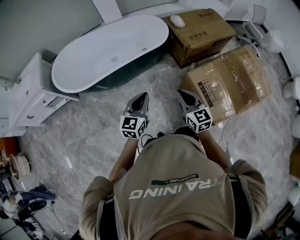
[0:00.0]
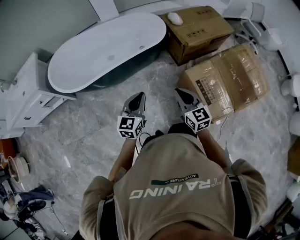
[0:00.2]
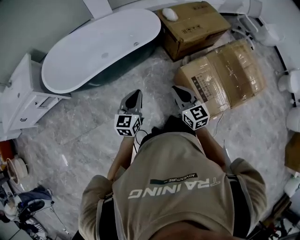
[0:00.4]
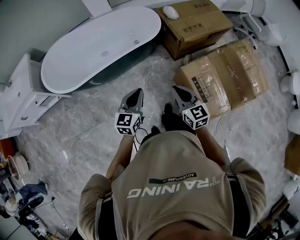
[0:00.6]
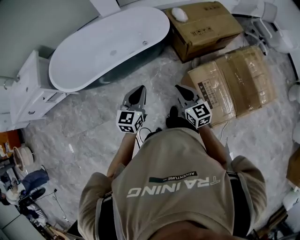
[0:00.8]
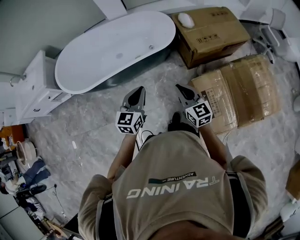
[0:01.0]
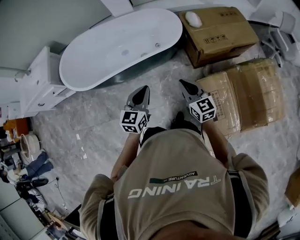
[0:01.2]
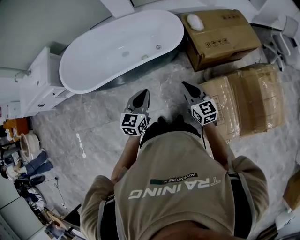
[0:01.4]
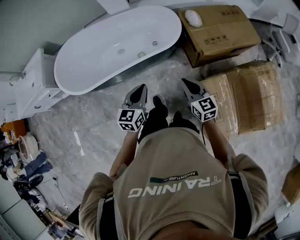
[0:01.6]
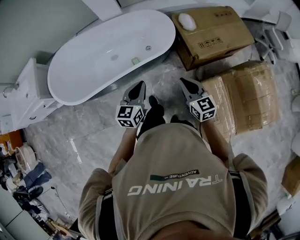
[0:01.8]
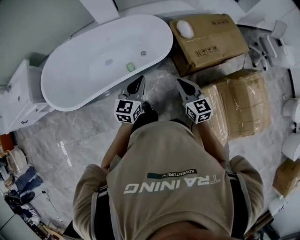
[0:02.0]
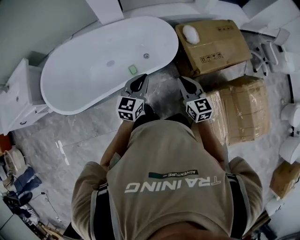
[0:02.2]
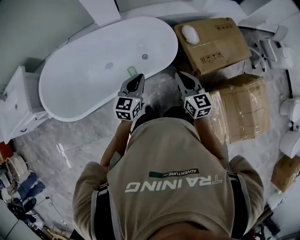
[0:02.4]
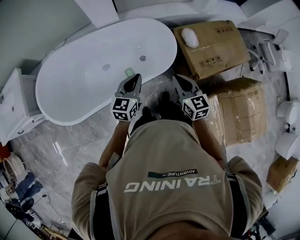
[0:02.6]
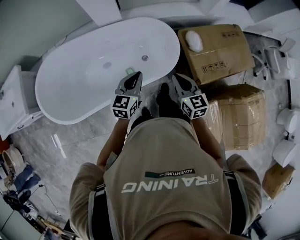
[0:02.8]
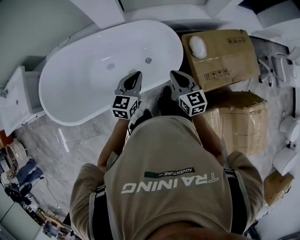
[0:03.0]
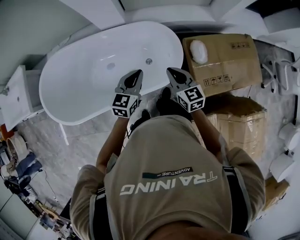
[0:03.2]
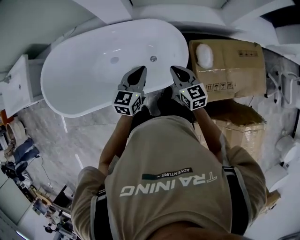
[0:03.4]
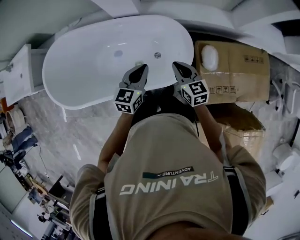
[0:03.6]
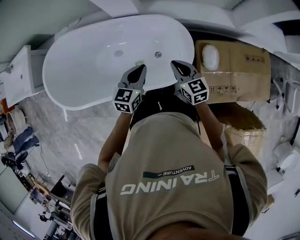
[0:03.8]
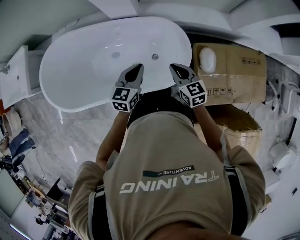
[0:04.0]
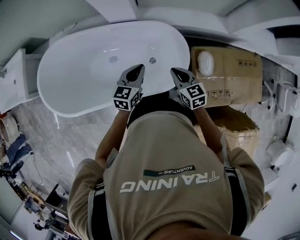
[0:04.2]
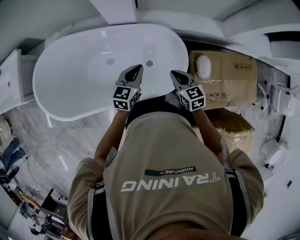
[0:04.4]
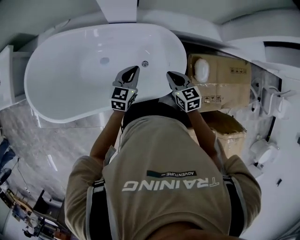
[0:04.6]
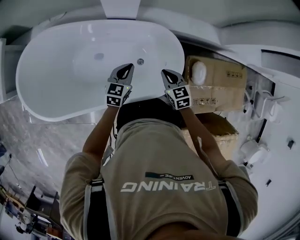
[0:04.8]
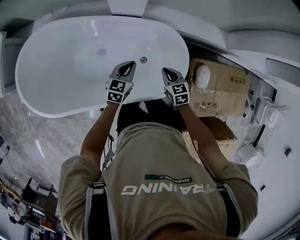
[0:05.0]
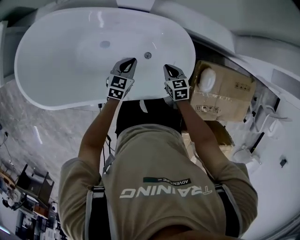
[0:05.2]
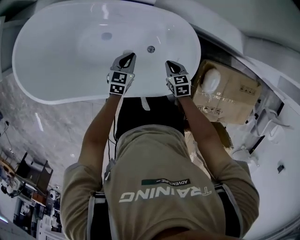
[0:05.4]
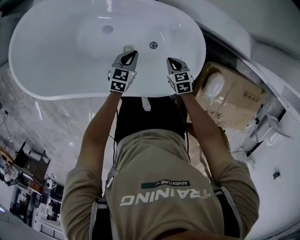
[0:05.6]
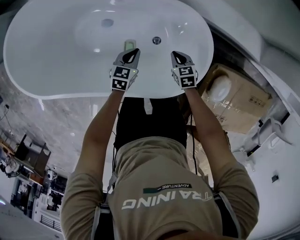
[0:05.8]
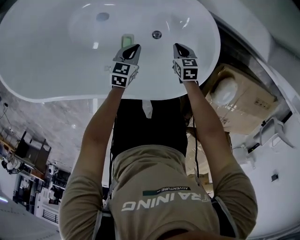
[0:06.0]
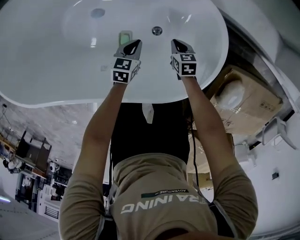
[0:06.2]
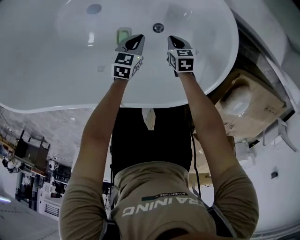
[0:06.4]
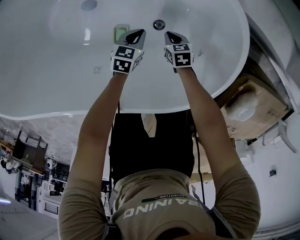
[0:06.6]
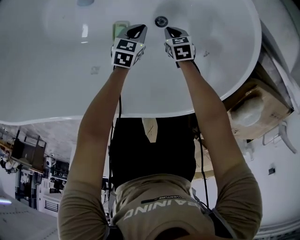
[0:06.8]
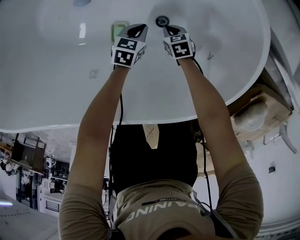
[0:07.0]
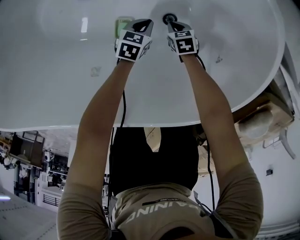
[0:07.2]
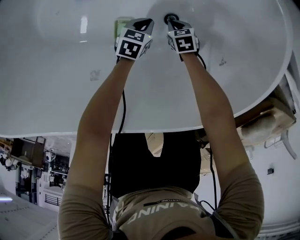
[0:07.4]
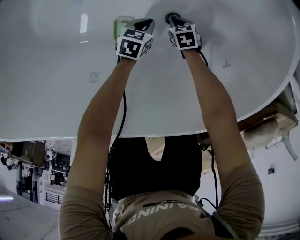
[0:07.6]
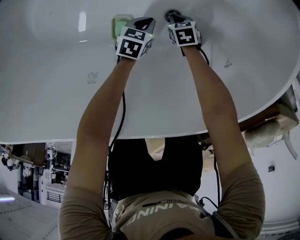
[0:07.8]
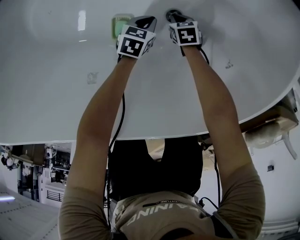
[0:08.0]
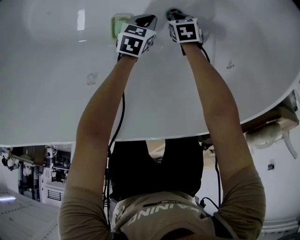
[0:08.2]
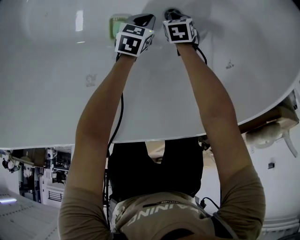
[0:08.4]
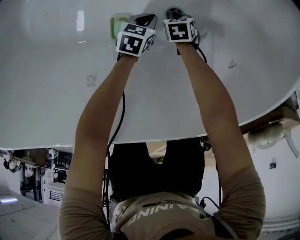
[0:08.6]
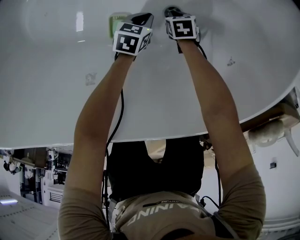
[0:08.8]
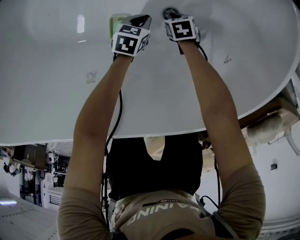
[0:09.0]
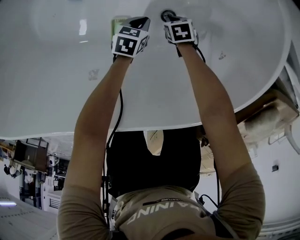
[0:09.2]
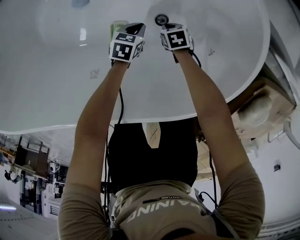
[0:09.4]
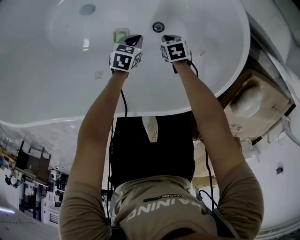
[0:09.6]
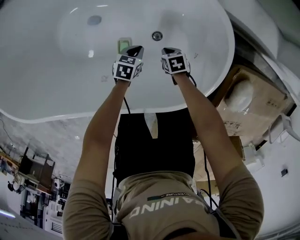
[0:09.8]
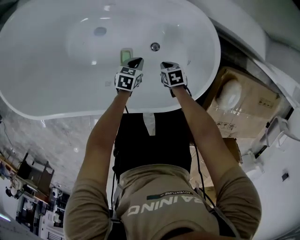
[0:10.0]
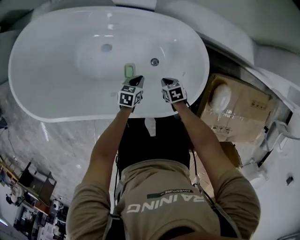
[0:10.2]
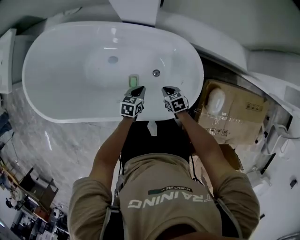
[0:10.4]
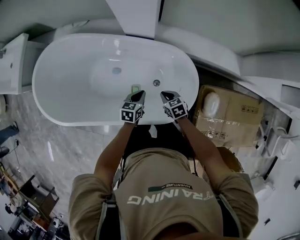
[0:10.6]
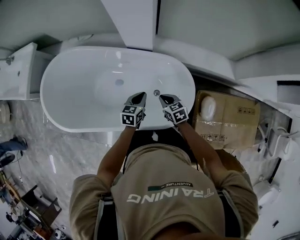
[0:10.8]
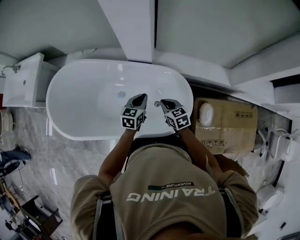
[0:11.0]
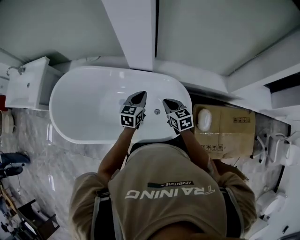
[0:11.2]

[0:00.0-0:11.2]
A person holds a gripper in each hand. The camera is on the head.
0:00.0 to 0:01.6: The grippers both shift forward by about 25 cm.
0:01.6 to 0:03.2: The pair of grippers is taken forward, some 40 cm.
0:03.2 to 0:04.8: The grippers both shift forward, downward and to the left by about 20 cm. The right gripper swivels about 20 degrees.
0:04.8 to 0:06.4: Both grippers move downward, about 40 cm. The right gripper changes its angle by roughly 30 degrees. Meanwhile the left gripper swivels approximately 30 degrees.
0:06.4 to 0:08.0: Both grippers travel together downward, roughly 25 cm.
0:08.0 to 0:09.6: Both grippers move upward, approximately 20 cm.
0:09.6 to 0:11.2: Both grippers travel together upward, roughly 60 cm. The left gripper angles its fingers upward, by about 30 degrees, while the right gripper points its fingers approximately 40 degrees further upward.

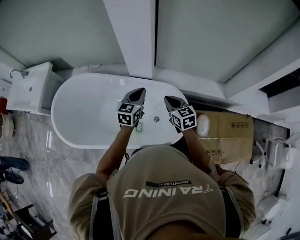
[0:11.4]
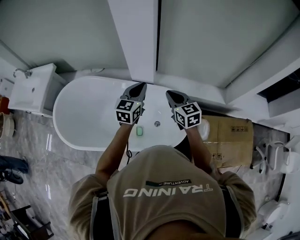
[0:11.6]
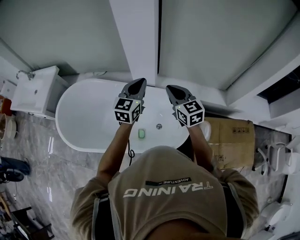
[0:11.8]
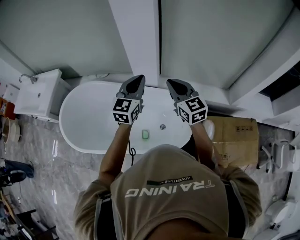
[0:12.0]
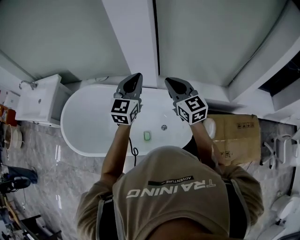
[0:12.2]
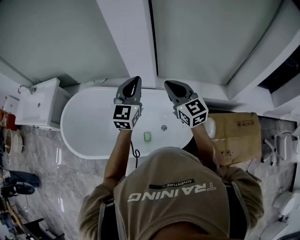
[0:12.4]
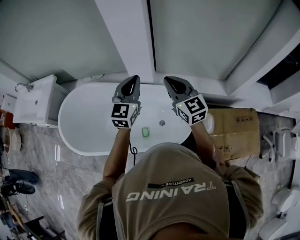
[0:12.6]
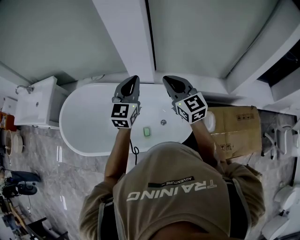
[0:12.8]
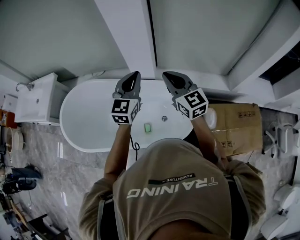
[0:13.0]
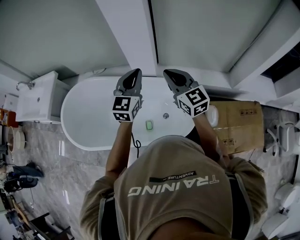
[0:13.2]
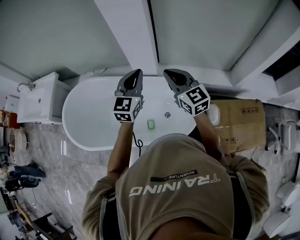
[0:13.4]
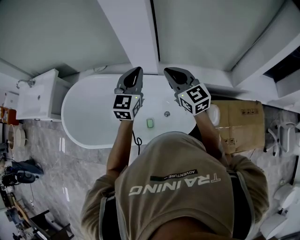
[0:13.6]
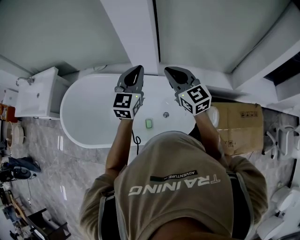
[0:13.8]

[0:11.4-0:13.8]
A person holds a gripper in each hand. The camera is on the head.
0:11.4 to 0:12.6: The grippers both shift upward by roughly 15 cm. The left gripper swivels roughly 20 degrees. Meanwhile the right gripper swivels some 30 degrees.
0:12.6 to 0:13.8: The grippers stay close to where they were, moving slightly.

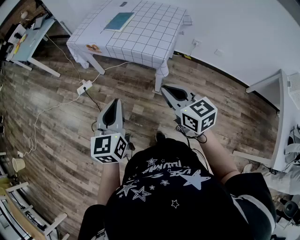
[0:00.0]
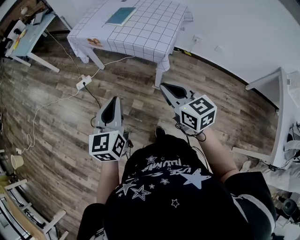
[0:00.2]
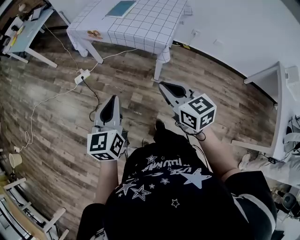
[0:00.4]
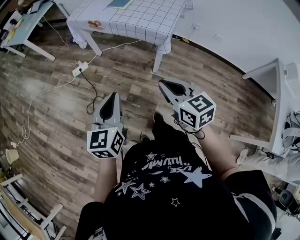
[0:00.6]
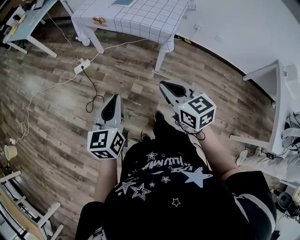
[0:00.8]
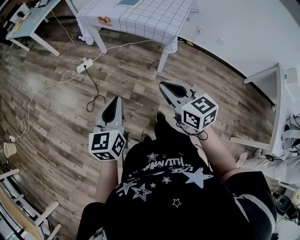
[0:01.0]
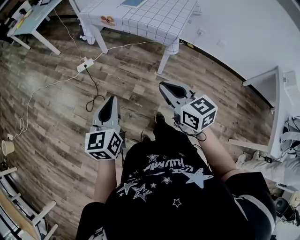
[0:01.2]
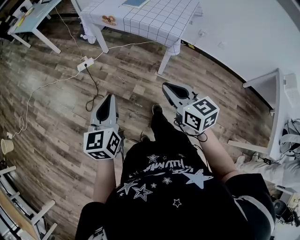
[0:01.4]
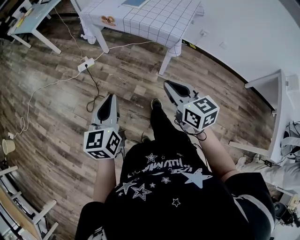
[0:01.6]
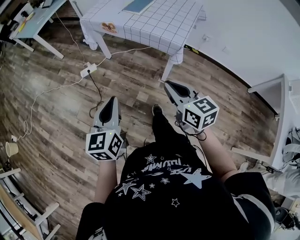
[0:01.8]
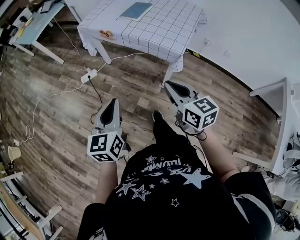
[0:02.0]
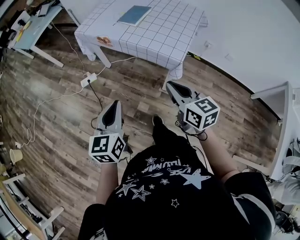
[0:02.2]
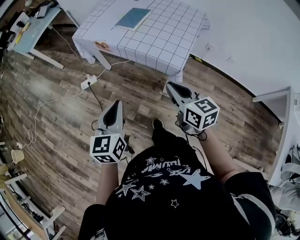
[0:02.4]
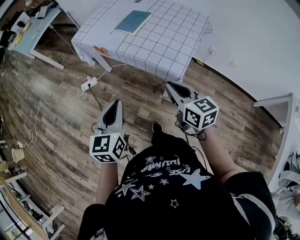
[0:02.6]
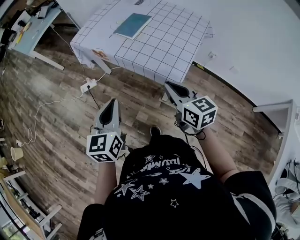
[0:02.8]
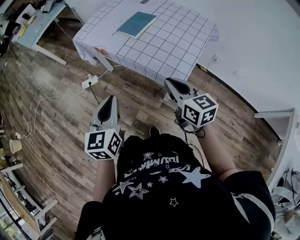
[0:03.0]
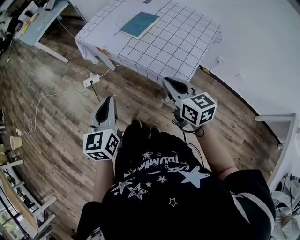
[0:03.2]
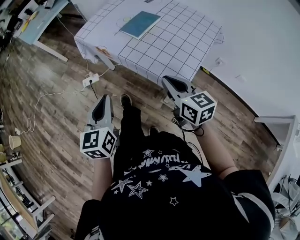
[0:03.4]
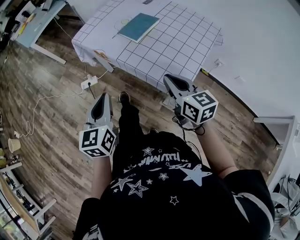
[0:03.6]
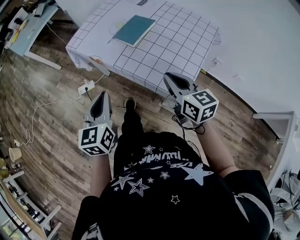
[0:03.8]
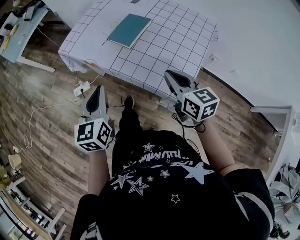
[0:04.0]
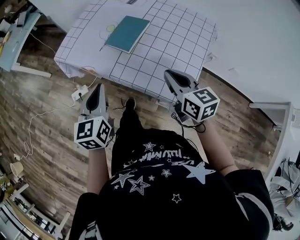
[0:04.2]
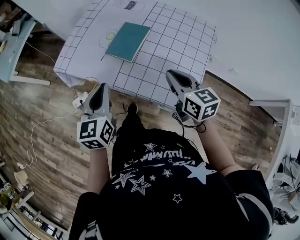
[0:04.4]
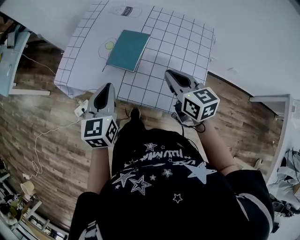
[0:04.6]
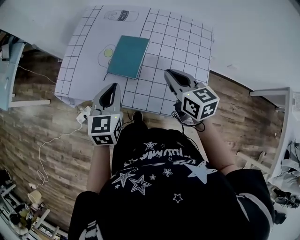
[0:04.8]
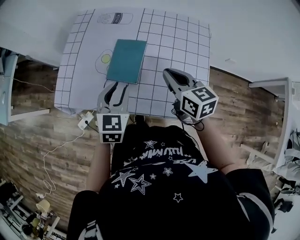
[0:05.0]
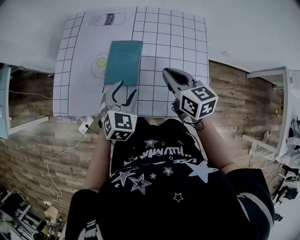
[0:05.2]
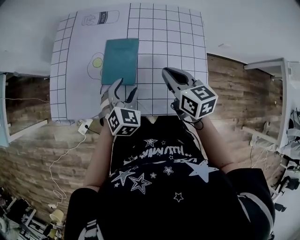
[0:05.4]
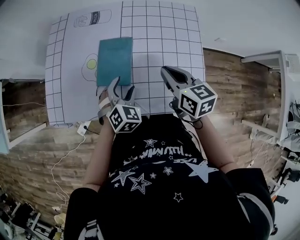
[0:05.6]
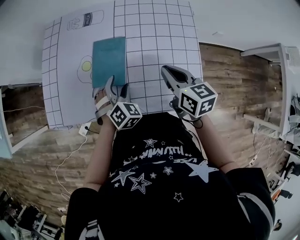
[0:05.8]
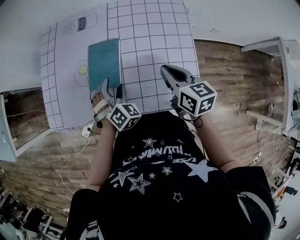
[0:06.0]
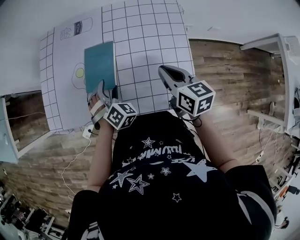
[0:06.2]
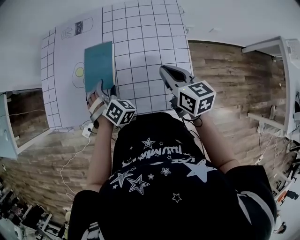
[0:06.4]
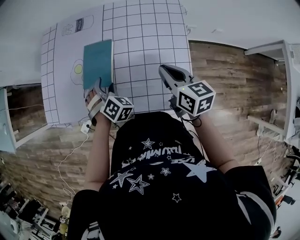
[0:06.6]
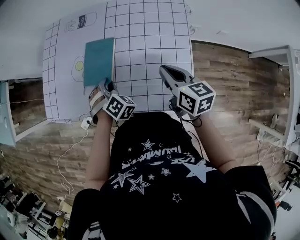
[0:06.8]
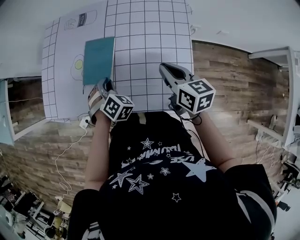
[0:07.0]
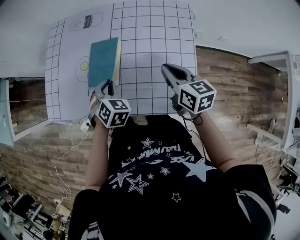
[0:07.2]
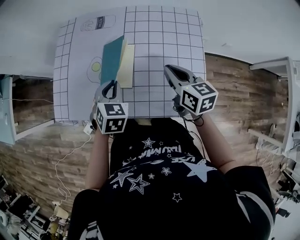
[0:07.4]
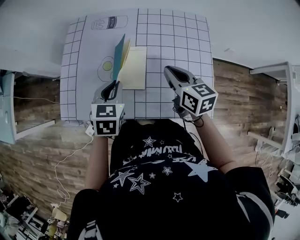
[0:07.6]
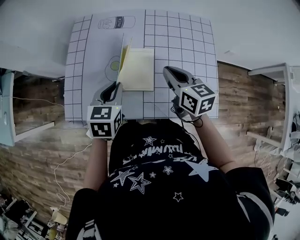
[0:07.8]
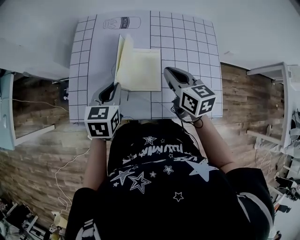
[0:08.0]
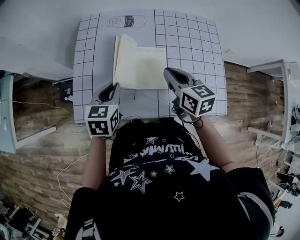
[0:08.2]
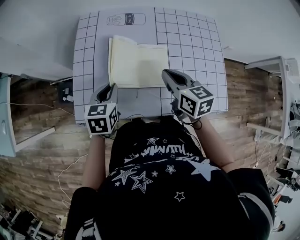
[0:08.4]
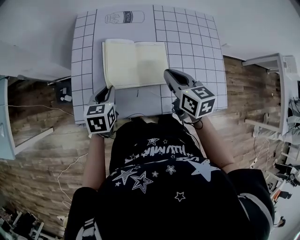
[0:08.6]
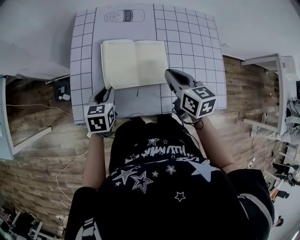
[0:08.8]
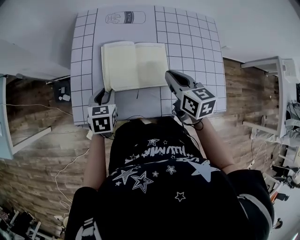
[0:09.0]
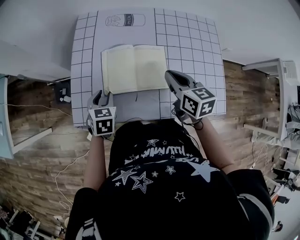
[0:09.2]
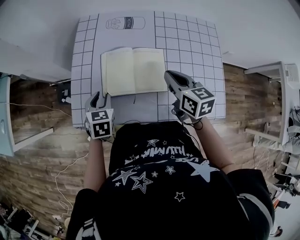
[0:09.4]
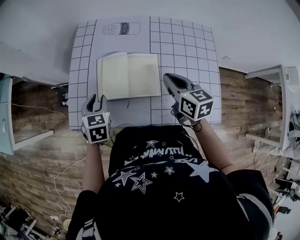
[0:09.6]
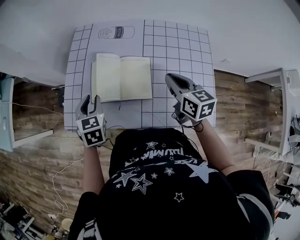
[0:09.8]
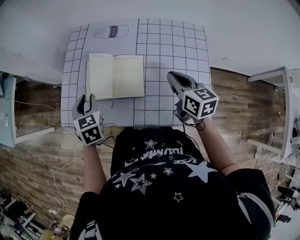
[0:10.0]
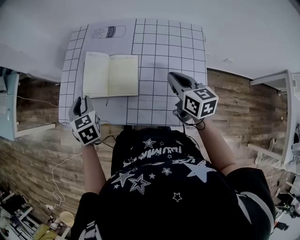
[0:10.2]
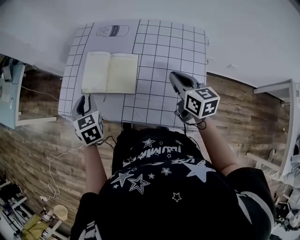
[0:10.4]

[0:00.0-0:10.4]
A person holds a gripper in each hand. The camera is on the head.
0:00.0 to 0:01.4: Both grippers move to the left and backward, approximately 15 cm.
0:01.4 to 0:03.0: Both grippers travel together forward and to the right, roughly 35 cm.
0:03.0 to 0:04.4: The grippers both shift forward by some 25 cm.
0:04.4 to 0:06.0: The left gripper moves forward, downward and to the right, roughly 25 cm, twists some 70 degrees clockwise, seen from behind, and opens up. Meanwhile the right gripper shifts some 5 cm forward, and swivels roughly 30 degrees.
0:06.0 to 0:07.4: The left gripper heads upward, covering roughly 5 cm, rotates some 30 degrees, and closes its fingers.
0:07.4 to 0:09.0: The grippers both shift to the left by some 20 cm. The left gripper rotates roughly 20 degrees.
0:09.0 to 0:10.4: The left gripper is displaced upward by roughly 10 cm, and swivels about 30 degrees; the right gripper moves roughly 20 cm.
